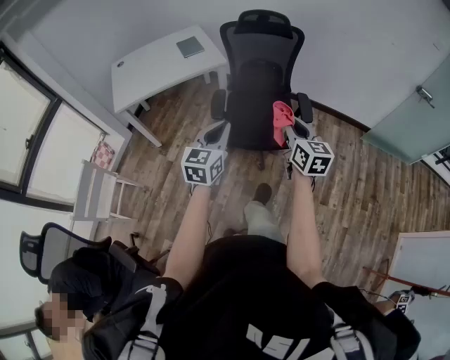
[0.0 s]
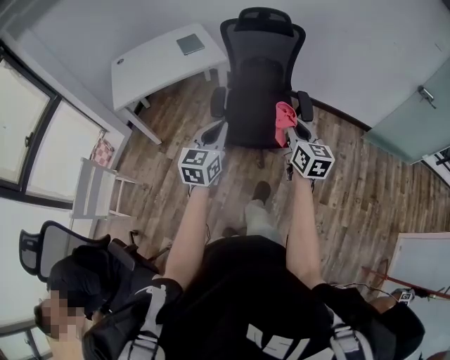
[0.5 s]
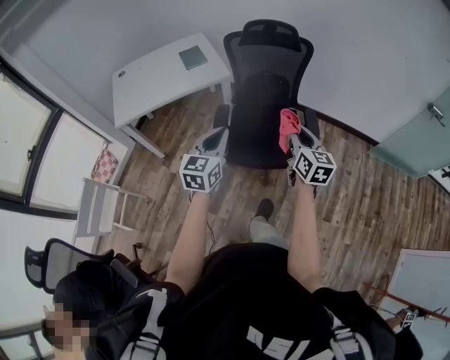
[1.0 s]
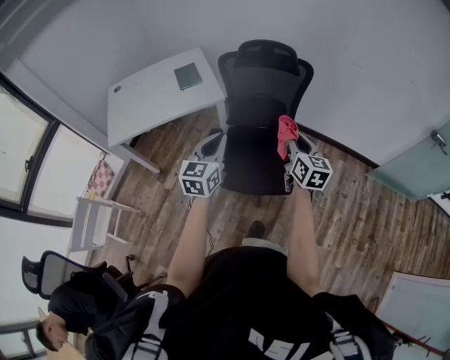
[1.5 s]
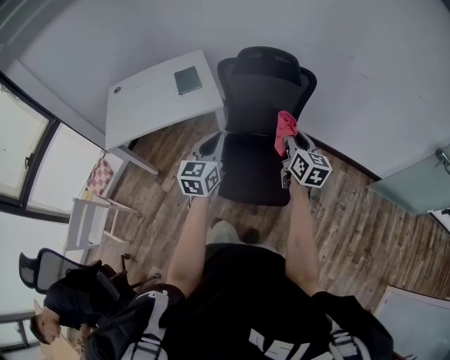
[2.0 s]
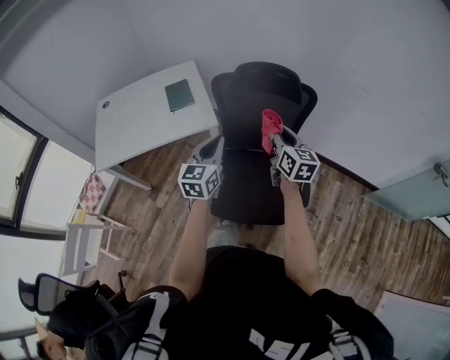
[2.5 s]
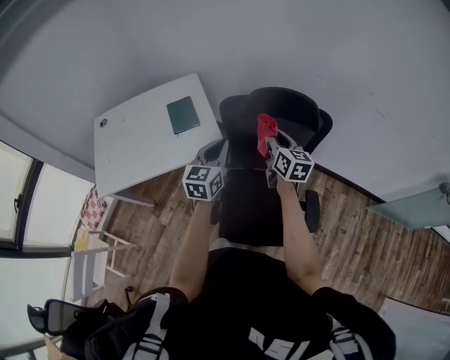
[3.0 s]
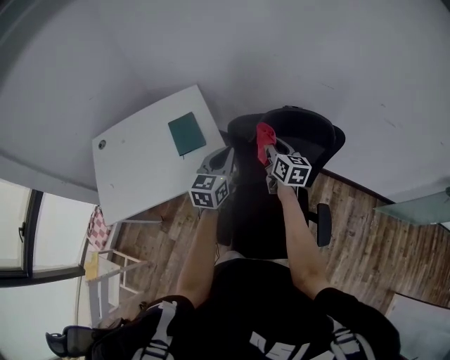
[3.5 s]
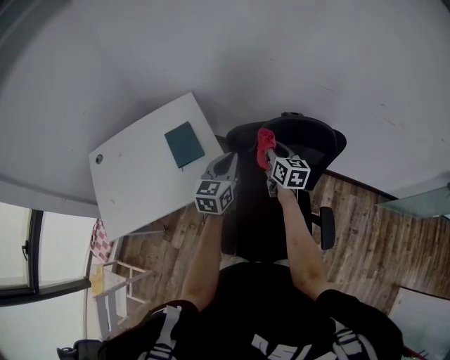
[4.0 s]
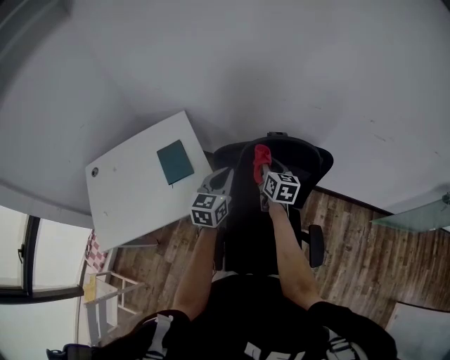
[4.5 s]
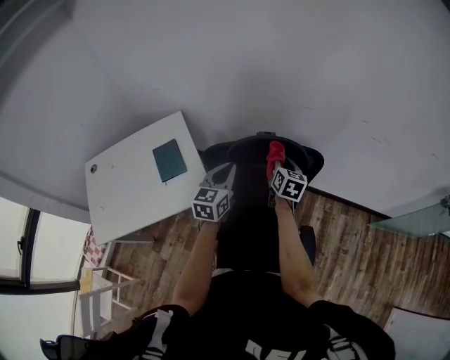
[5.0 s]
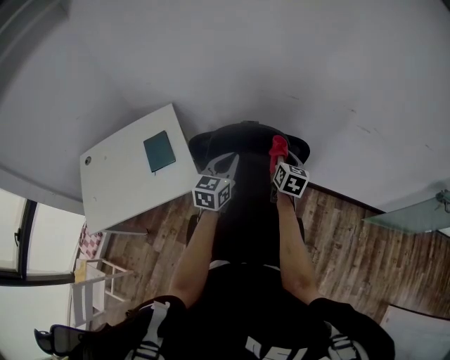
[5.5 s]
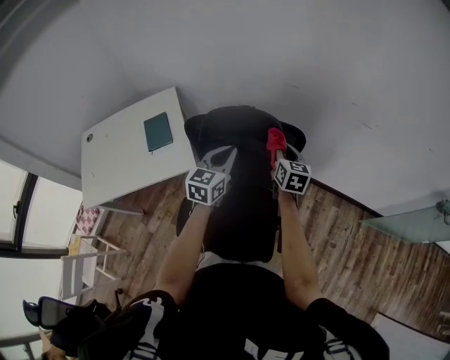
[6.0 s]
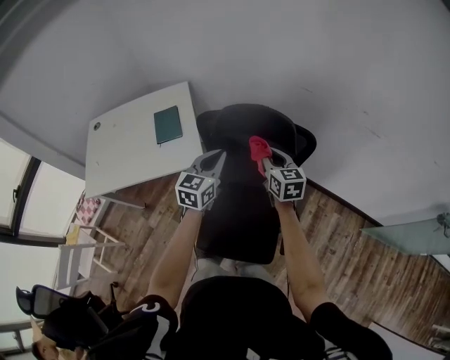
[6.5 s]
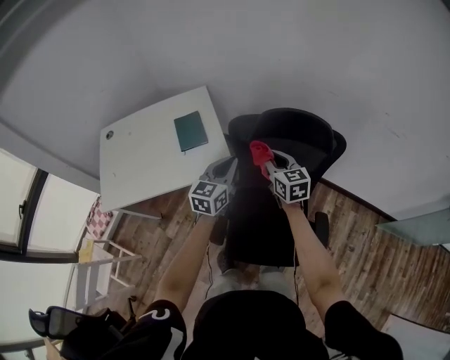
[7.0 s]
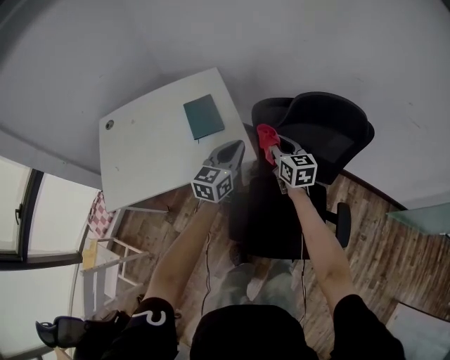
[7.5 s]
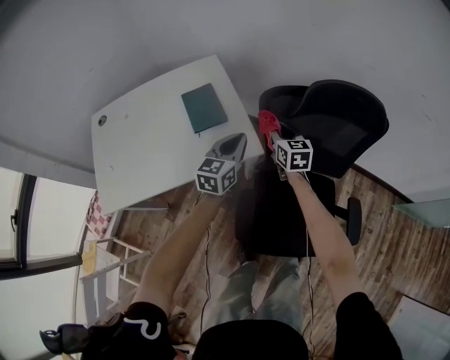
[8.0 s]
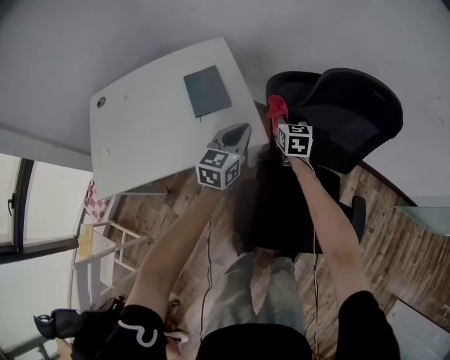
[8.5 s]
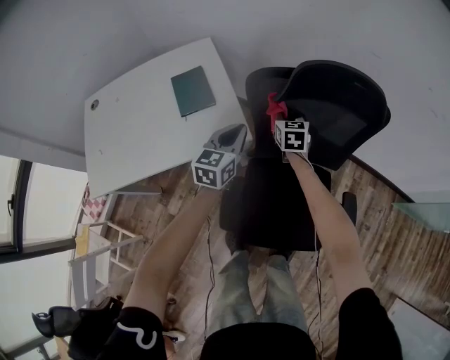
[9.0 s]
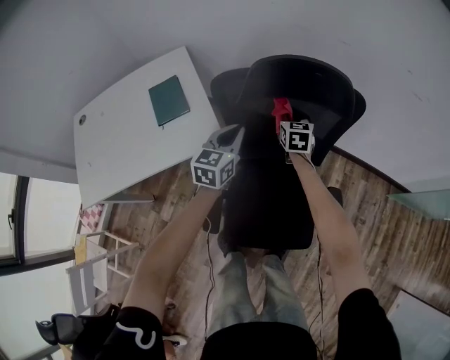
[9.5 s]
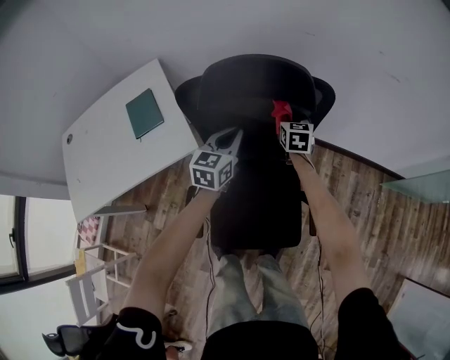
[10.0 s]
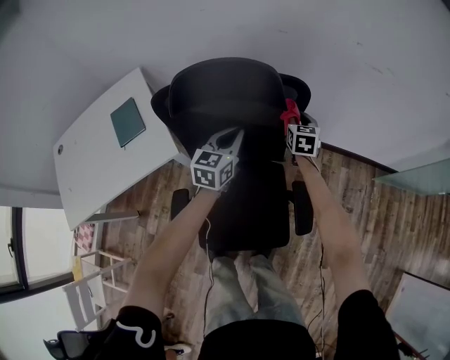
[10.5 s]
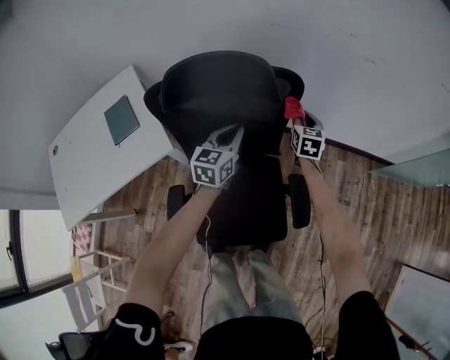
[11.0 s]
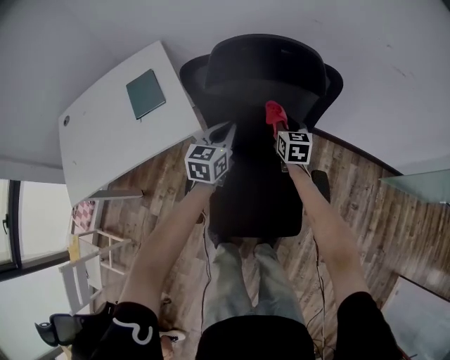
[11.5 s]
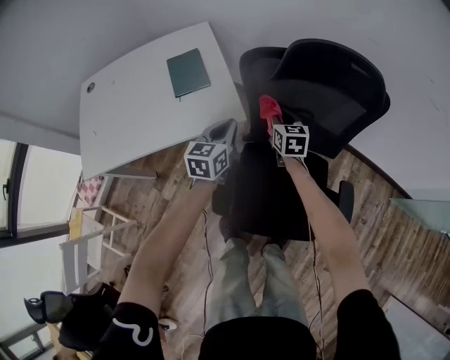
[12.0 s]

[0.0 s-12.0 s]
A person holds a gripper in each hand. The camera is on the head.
0.0 to 2.0 s: The grippers both shift forward by some 30 cm.
2.0 to 4.0 s: Both grippers are carried forward, about 40 cm.
4.0 to 6.0 s: Both grippers move to the right, about 25 cm.
6.0 to 8.0 s: The two grippers go about 35 cm to the left and downward.
8.0 to 10.0 s: The two grippers go approximately 30 cm to the right.
10.0 to 12.0 s: Both grippers travel together to the left and backward, approximately 20 cm.

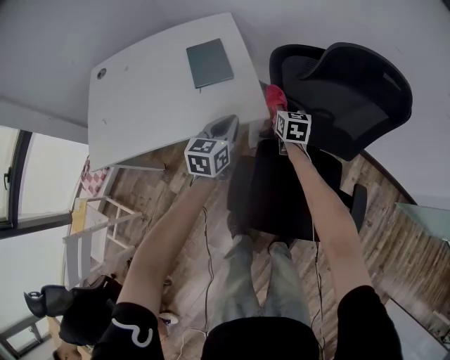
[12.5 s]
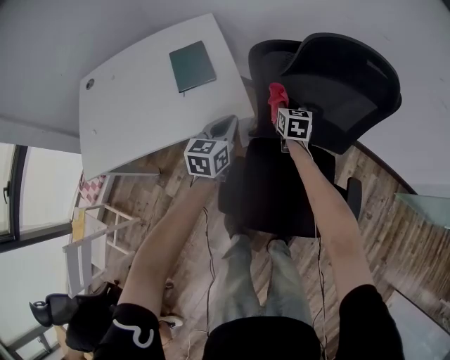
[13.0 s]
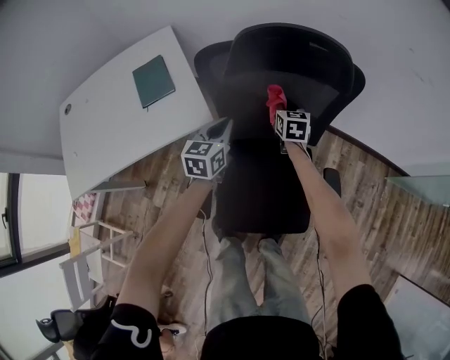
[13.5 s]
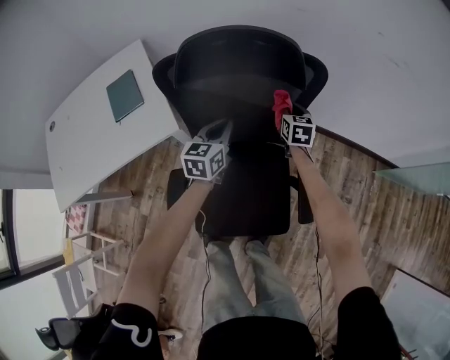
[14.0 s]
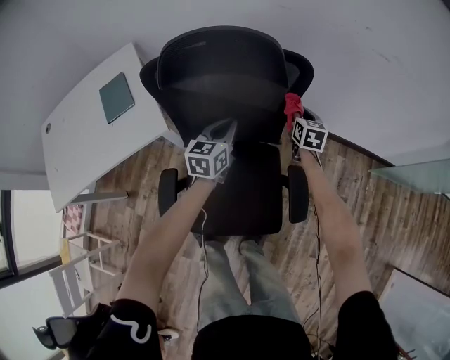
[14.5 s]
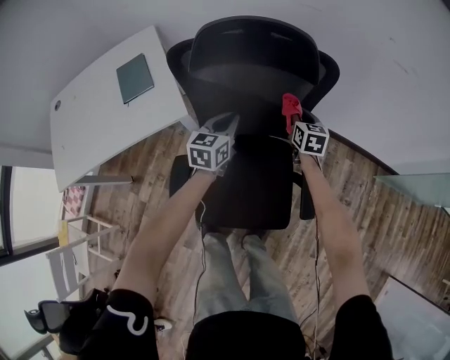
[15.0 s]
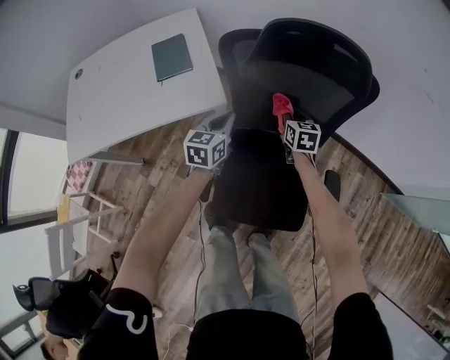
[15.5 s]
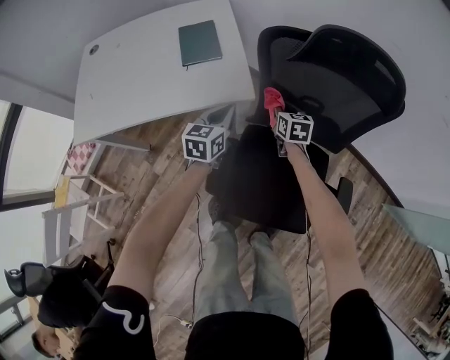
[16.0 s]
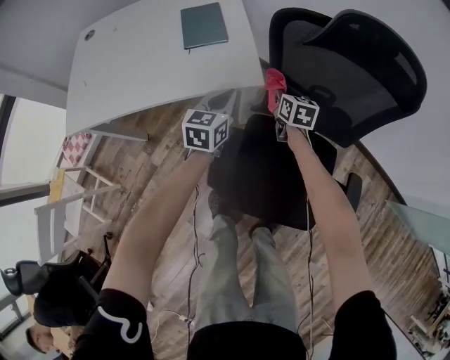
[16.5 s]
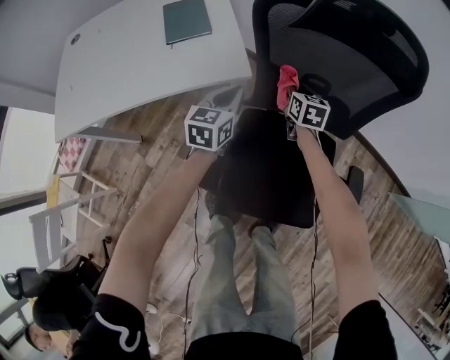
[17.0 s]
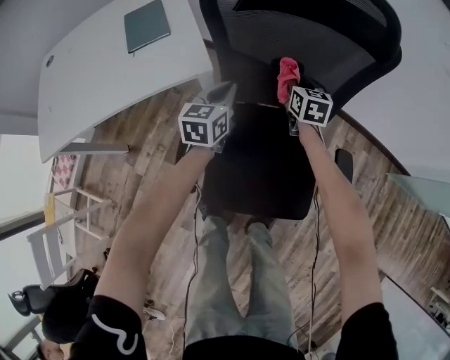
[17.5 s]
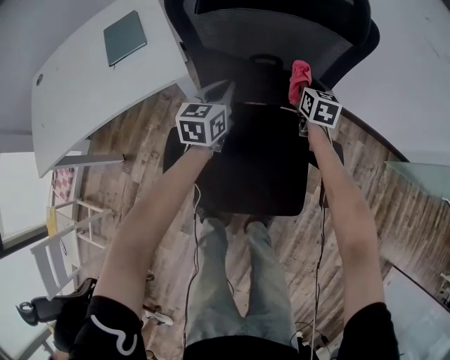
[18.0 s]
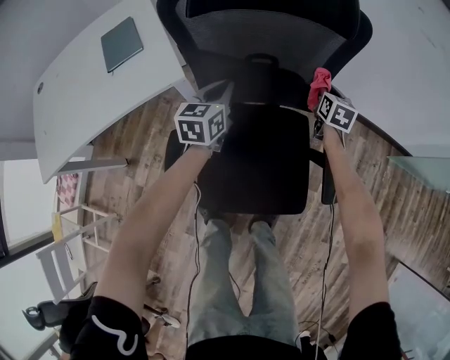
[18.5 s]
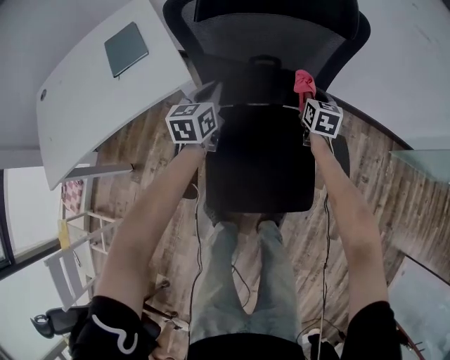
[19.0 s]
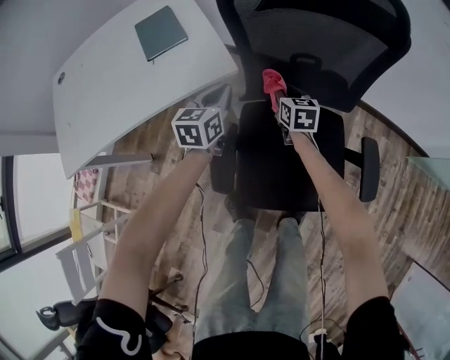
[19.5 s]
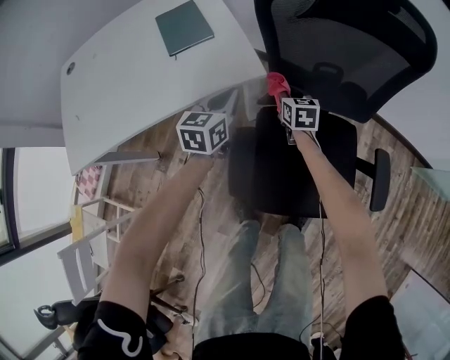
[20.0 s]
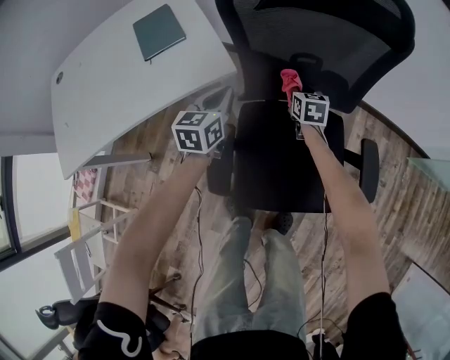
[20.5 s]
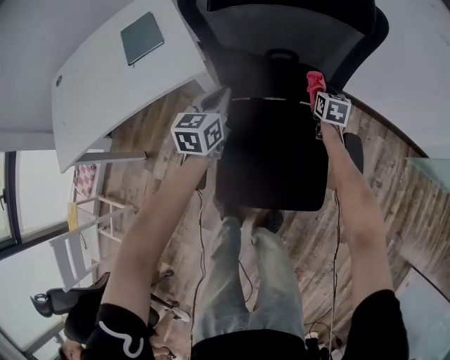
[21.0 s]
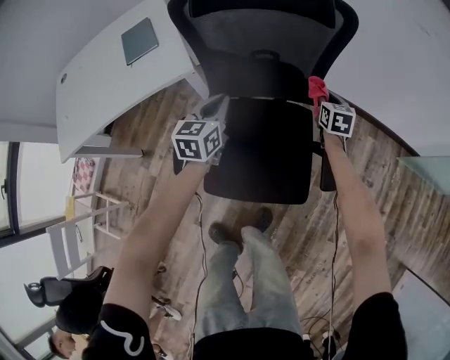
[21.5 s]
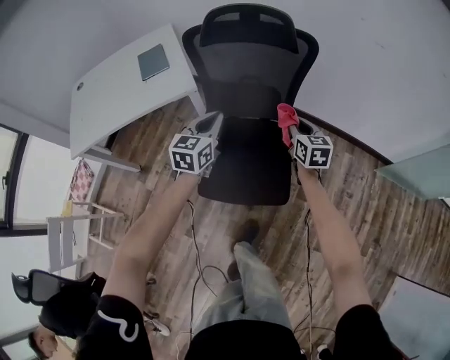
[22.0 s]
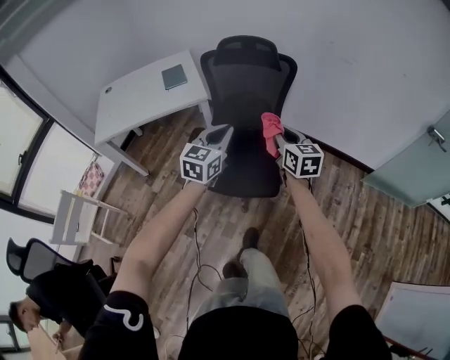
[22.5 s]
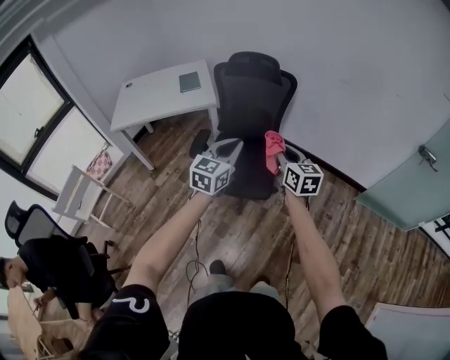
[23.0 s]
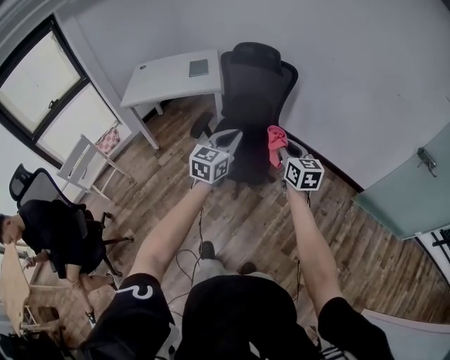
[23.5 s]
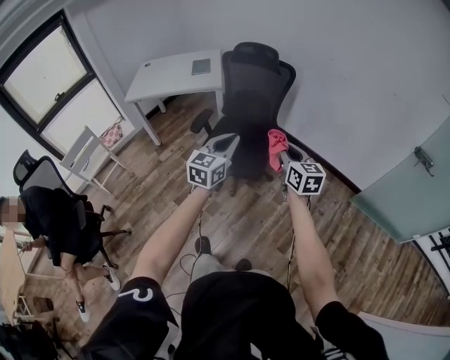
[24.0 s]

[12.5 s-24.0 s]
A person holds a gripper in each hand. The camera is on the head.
12.5 to 14.5 s: Both grippers move to the right, roughly 40 cm.
14.5 to 16.5 s: Both grippers travel together to the left, roughly 35 cm. The right gripper rotates some 20 degrees.
16.5 to 18.5 s: The right gripper is displaced to the right by about 40 cm, and rotates roughly 30 degrees; the left gripper goes some 20 cm to the right.
18.5 to 20.0 s: The left gripper shifts some 20 cm to the left. Meanwhile the right gripper goes about 35 cm to the left, and rotates roughly 20 degrees.
20.0 to 22.0 s: The grippers both shift to the right, upward and backward by roughly 40 cm.
22.0 to 24.0 s: The pair of grippers is taken backward, about 50 cm. The two grippers go roughly 25 cm upward. The right gripper changes its angle by about 20 degrees.

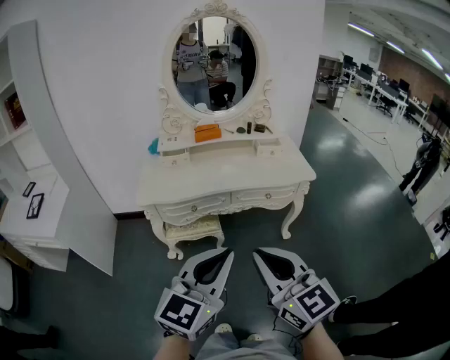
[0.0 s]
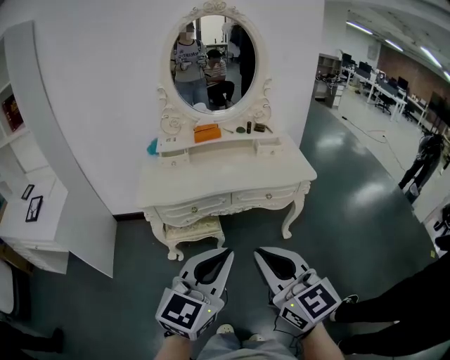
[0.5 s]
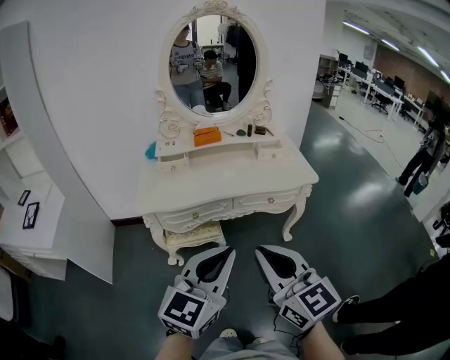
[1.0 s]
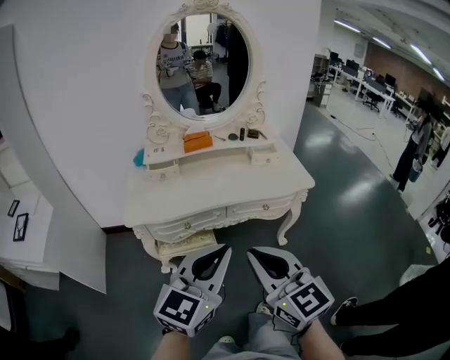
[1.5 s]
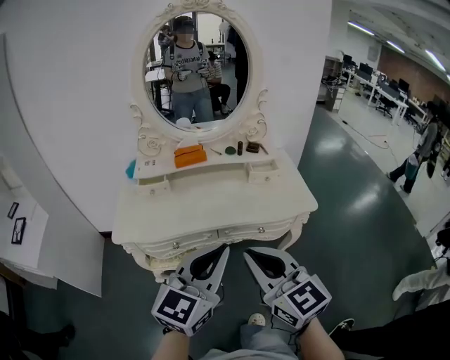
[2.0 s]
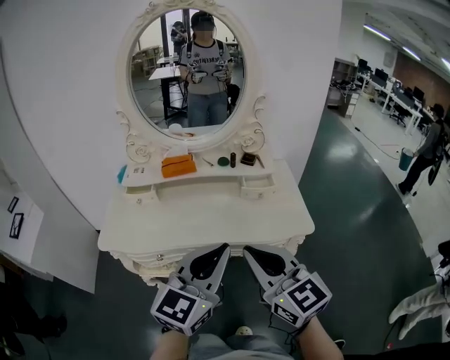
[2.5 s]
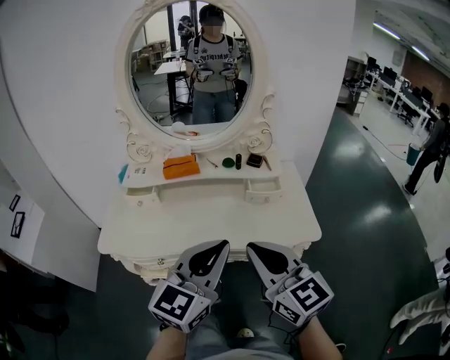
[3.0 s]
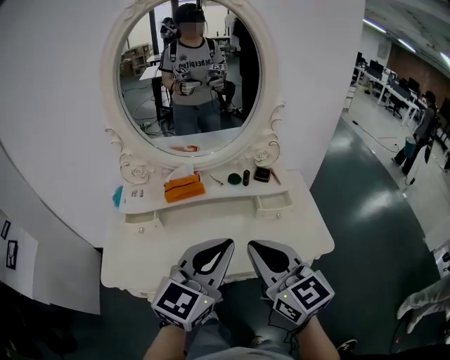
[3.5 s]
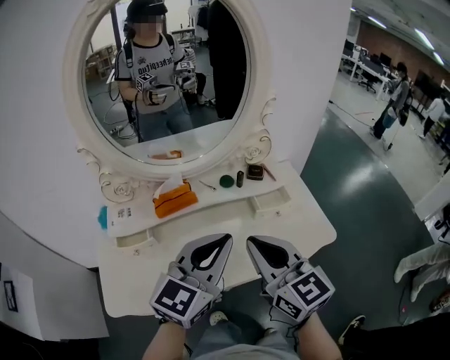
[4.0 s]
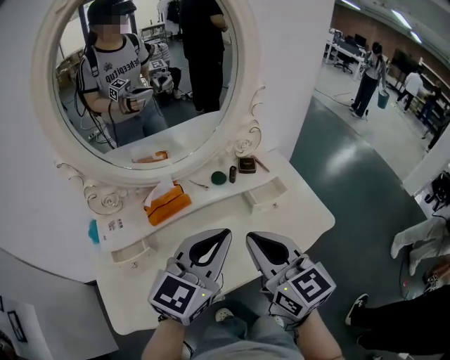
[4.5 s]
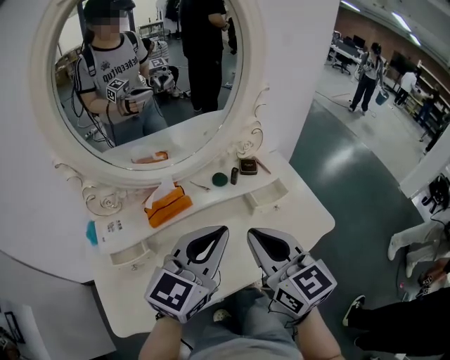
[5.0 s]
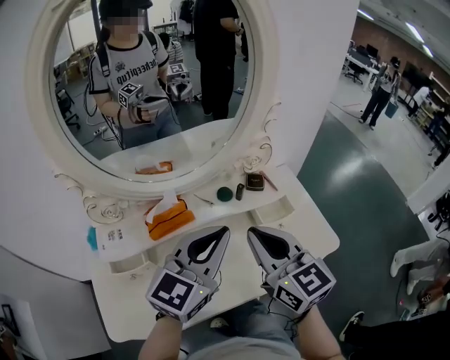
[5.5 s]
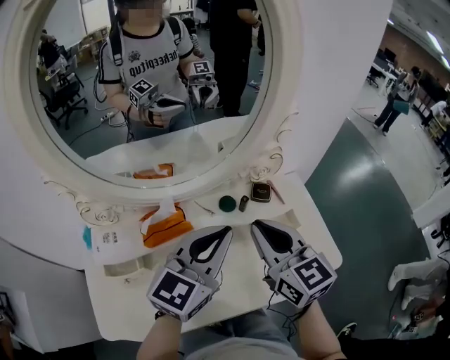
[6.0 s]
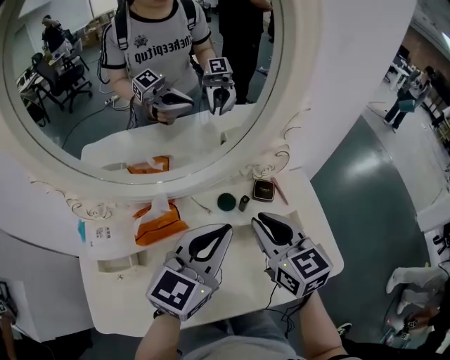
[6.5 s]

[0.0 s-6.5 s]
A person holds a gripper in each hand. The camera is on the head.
0.0 to 2.0 s: Both grippers move forward, approximately 20 cm.
2.0 to 4.5 s: Both grippers move forward, roughly 30 cm. The right gripper rotates roughly 20 degrees.
4.5 to 6.5 s: The grippers both shift forward by some 15 cm.
